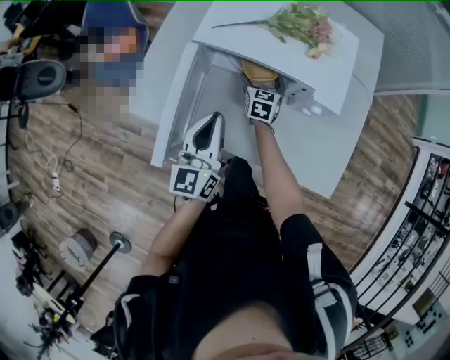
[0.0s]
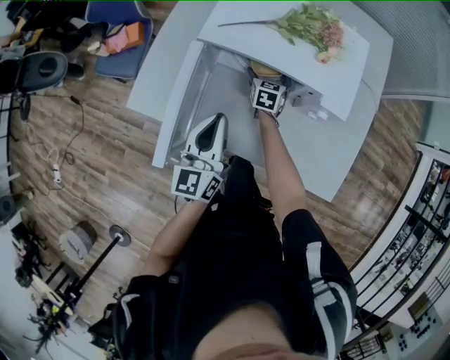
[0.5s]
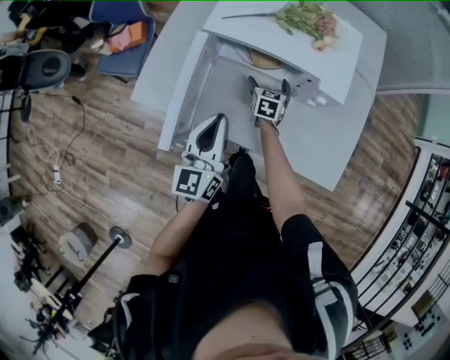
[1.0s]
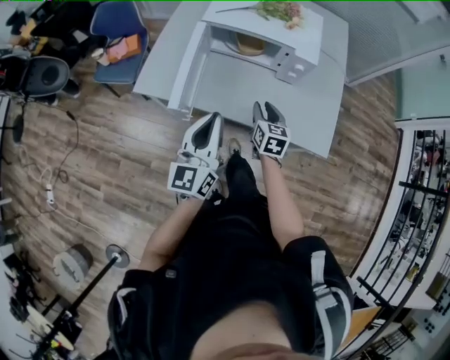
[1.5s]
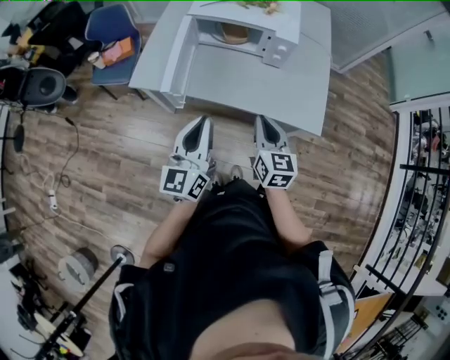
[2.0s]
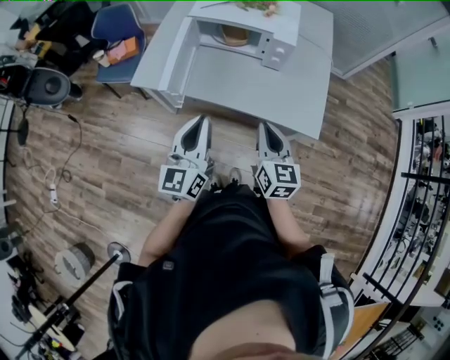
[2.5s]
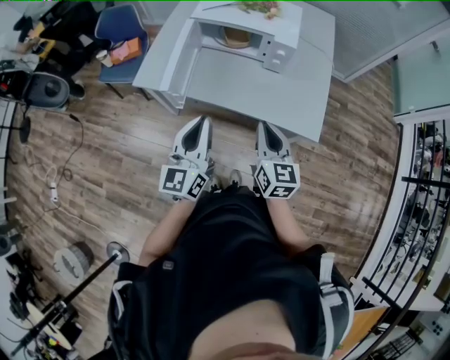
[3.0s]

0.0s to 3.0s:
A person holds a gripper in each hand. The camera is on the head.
0.0s to 1.5s: The grippers both shift backward and upward by some 30 cm. The right gripper closes up.
1.5s to 3.0s: The left gripper heads backward, covering some 10 cm; the right gripper goes roughly 25 cm backward and upward.

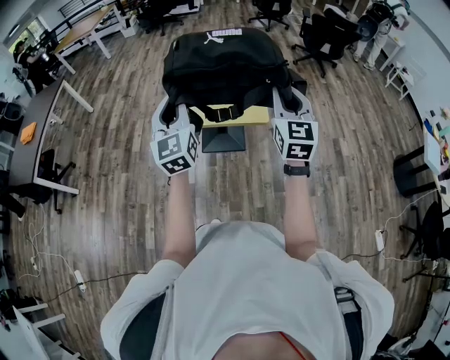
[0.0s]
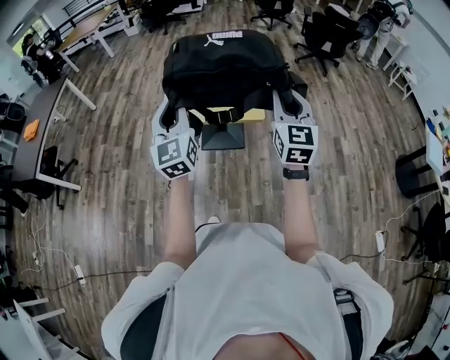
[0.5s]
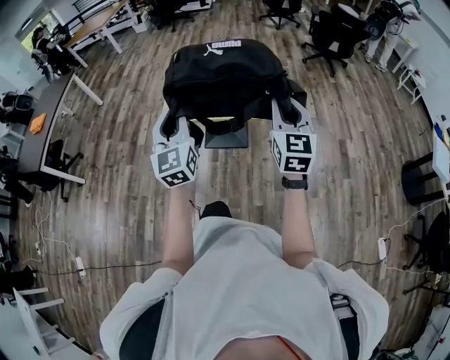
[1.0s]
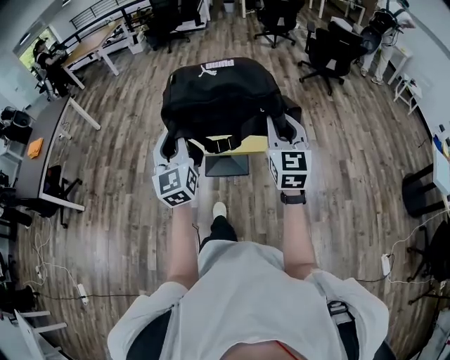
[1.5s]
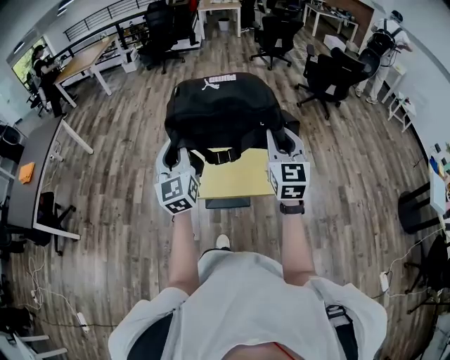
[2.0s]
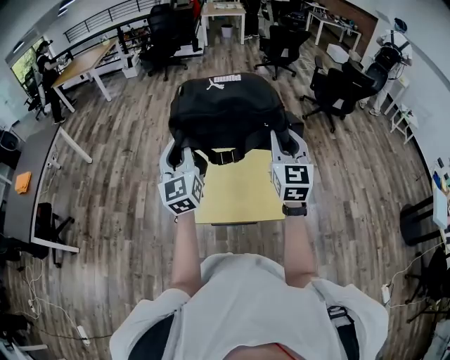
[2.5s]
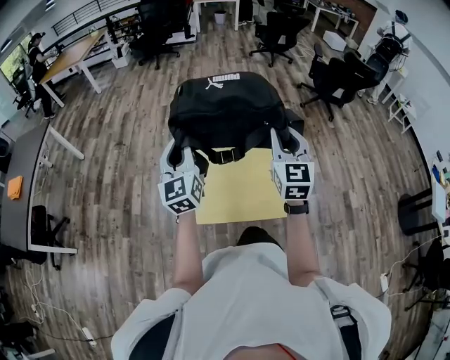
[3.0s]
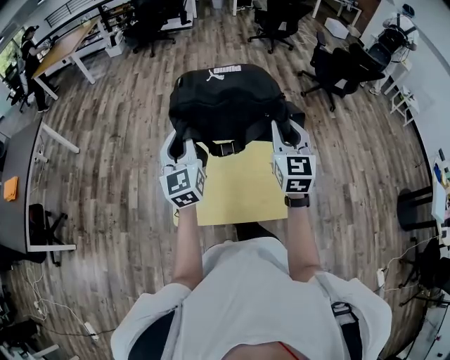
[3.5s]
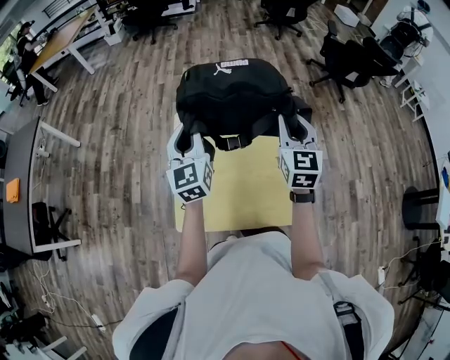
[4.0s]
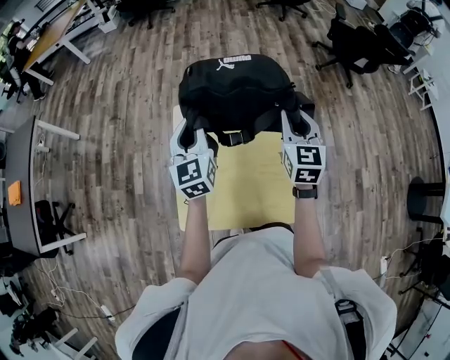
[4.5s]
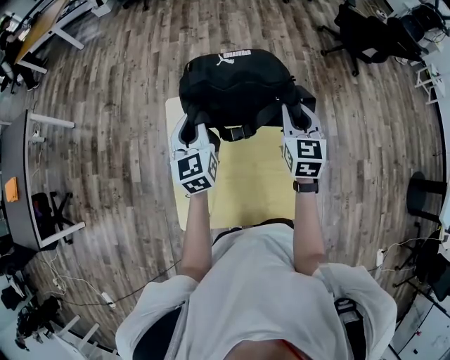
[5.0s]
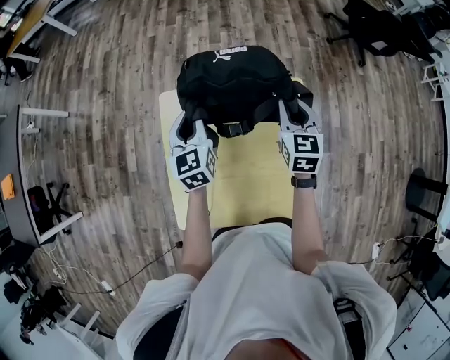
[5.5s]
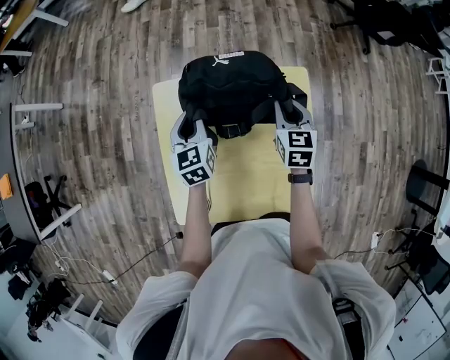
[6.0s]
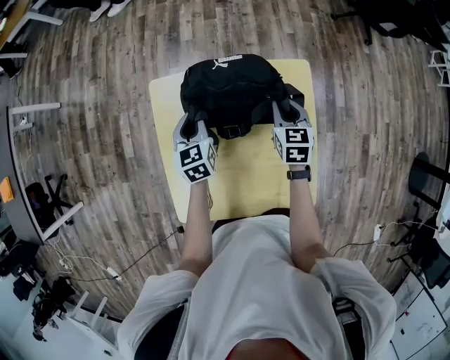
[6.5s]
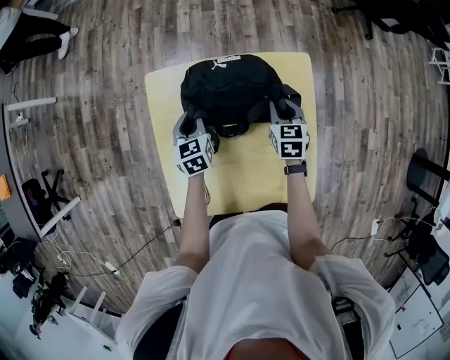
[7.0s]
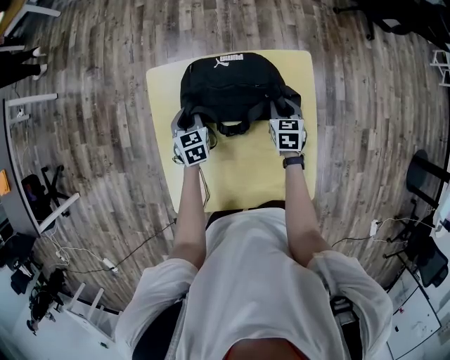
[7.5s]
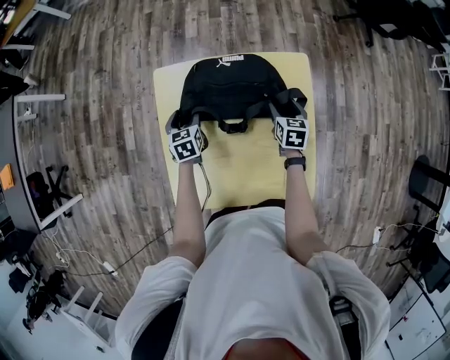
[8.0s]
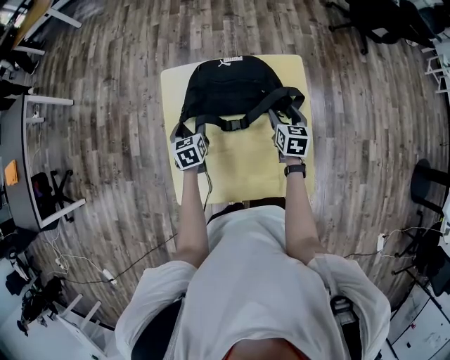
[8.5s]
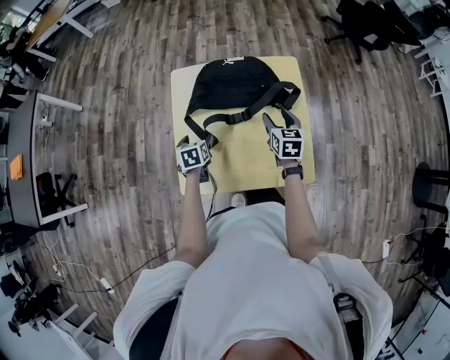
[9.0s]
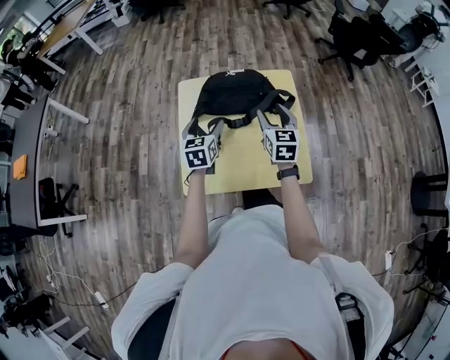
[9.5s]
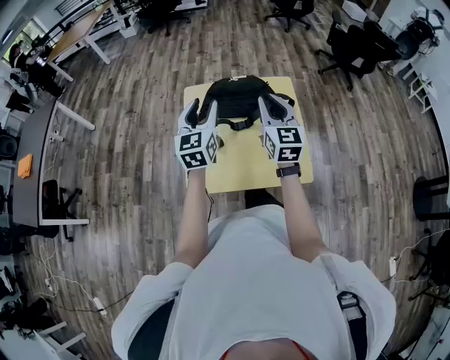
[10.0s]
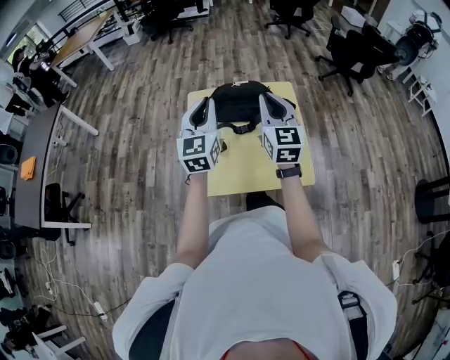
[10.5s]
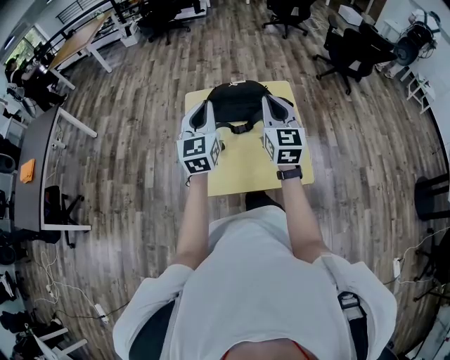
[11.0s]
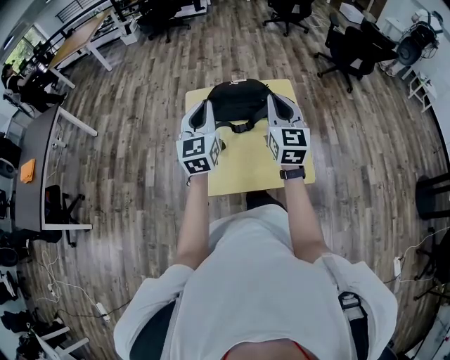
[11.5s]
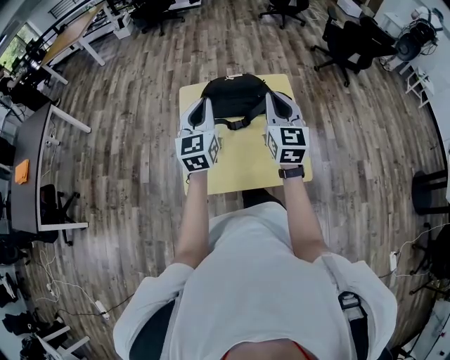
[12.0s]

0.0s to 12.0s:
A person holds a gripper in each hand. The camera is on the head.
0.0s to 2.0s: Both grippers travel together forward, about 20 cm.
2.0s to 4.0s: Both grippers travel together forward, approximately 30 cm.
4.0s to 6.0s: Both grippers travel together downward and forward, approximately 25 cm. The left gripper swivels approximately 30 degrees. The right gripper turns by about 30 degrees.
6.0s to 8.0s: The right gripper goes about 15 cm downward and backward, and opens up; the left gripper travels downward by roughly 15 cm, and opens up.
8.0s to 10.0s: Both grippers travel together upward and backward, some 40 cm. The left gripper points its fingers roughly 40 degrees further upward, while the right gripper angles its fingers upward, by approximately 40 degrees, and closes.
10.0s to 12.0s: The left gripper closes its fingers.

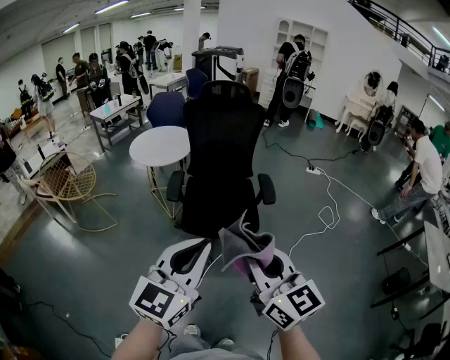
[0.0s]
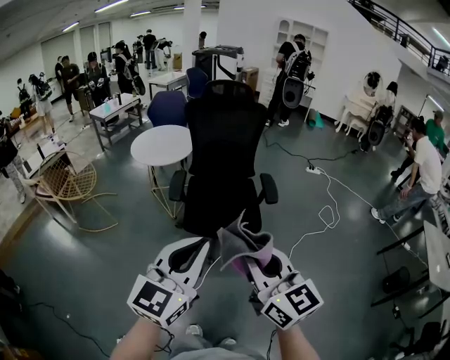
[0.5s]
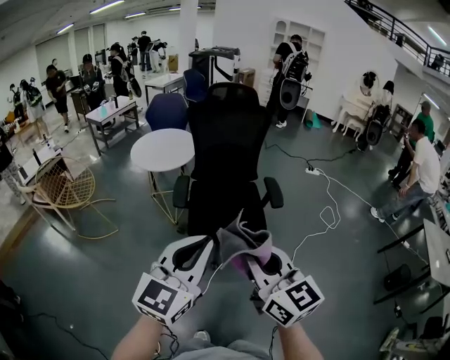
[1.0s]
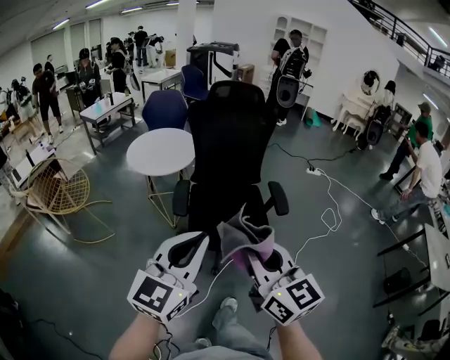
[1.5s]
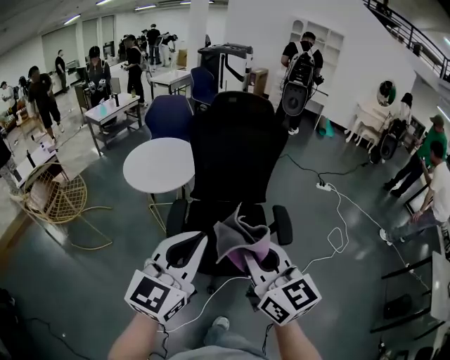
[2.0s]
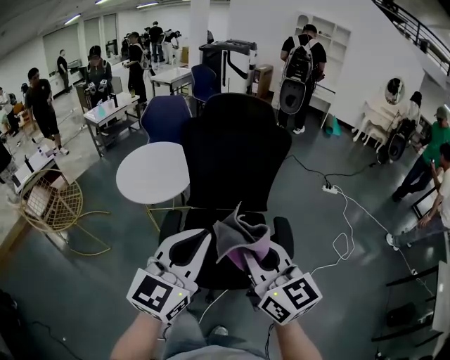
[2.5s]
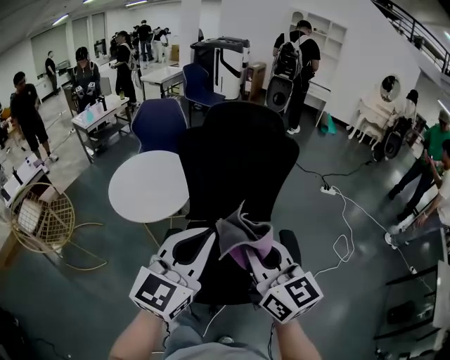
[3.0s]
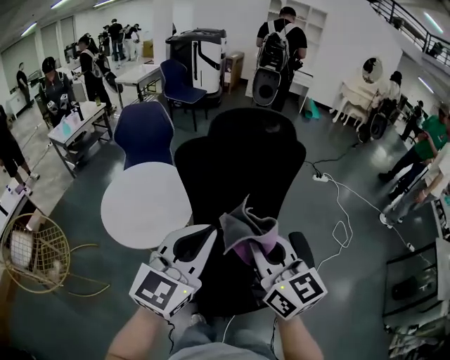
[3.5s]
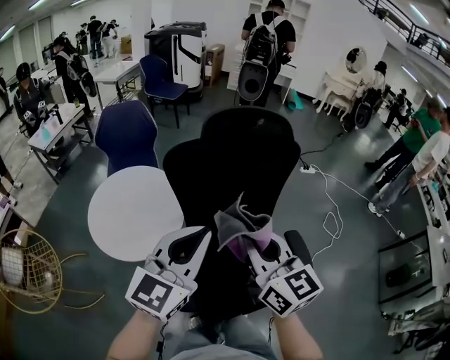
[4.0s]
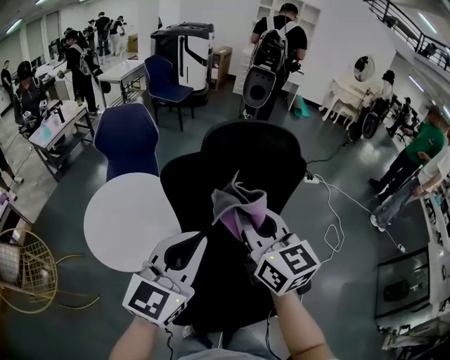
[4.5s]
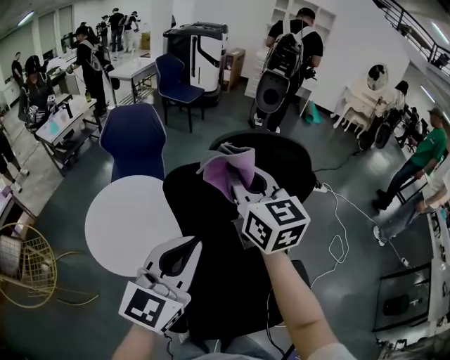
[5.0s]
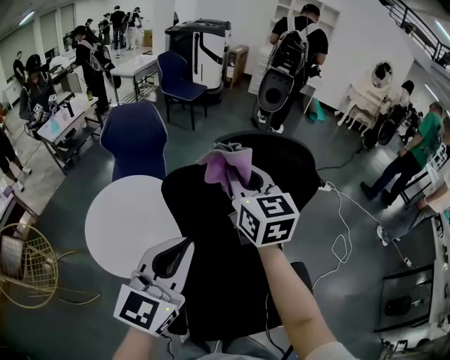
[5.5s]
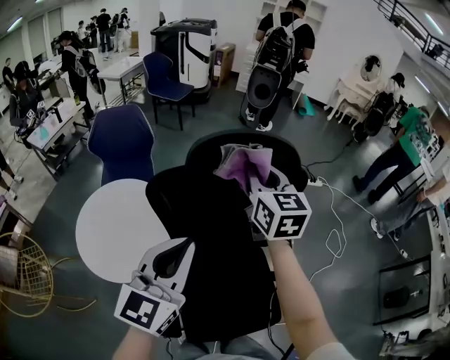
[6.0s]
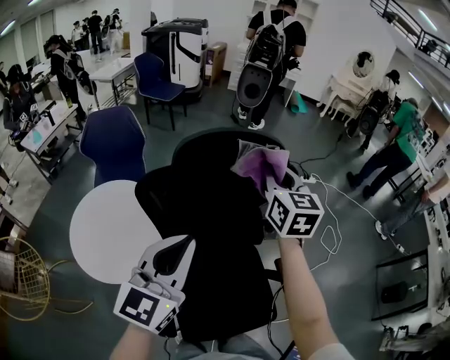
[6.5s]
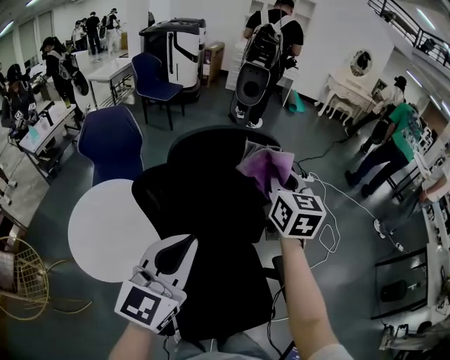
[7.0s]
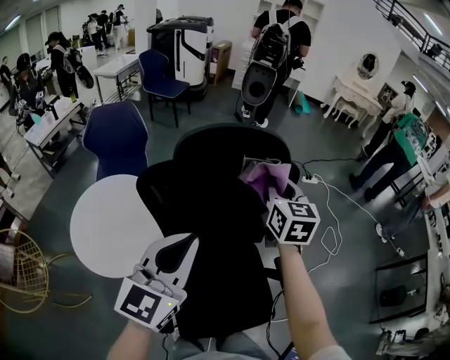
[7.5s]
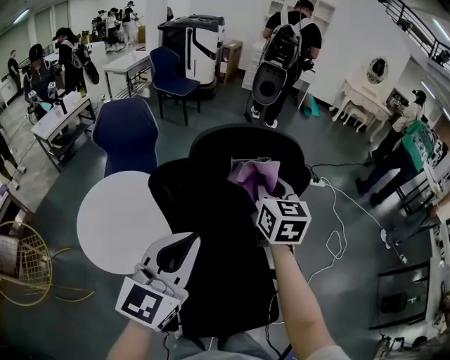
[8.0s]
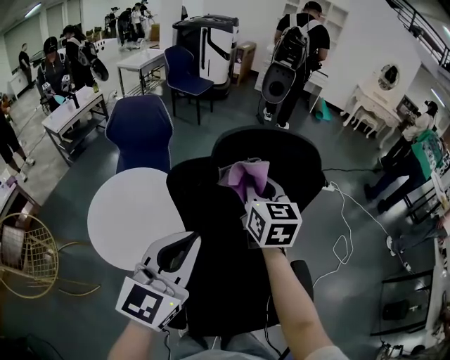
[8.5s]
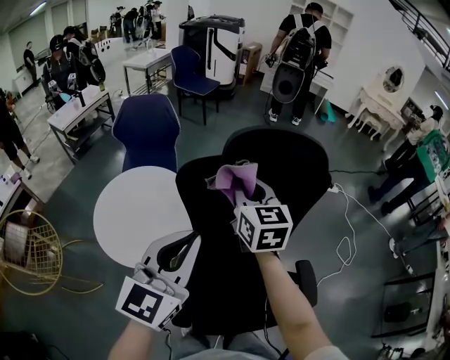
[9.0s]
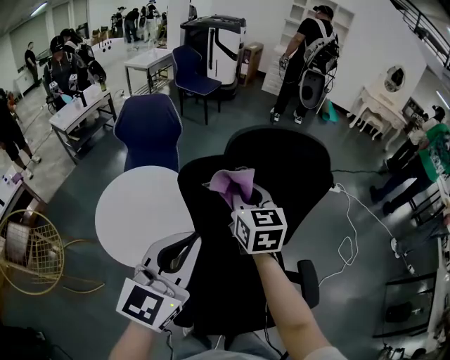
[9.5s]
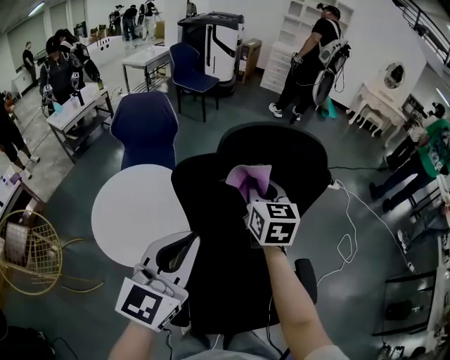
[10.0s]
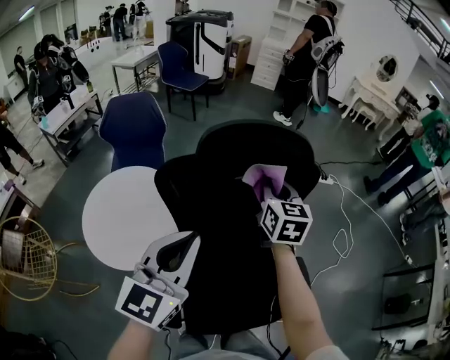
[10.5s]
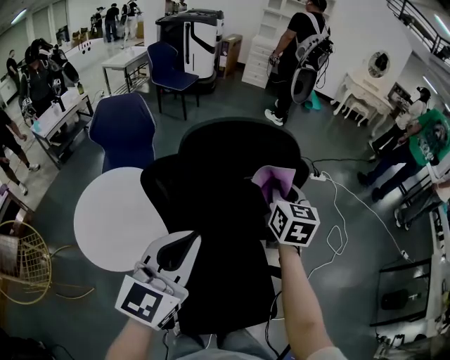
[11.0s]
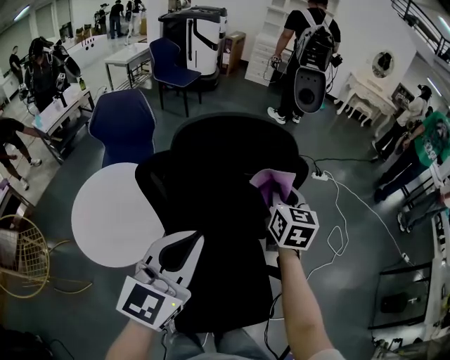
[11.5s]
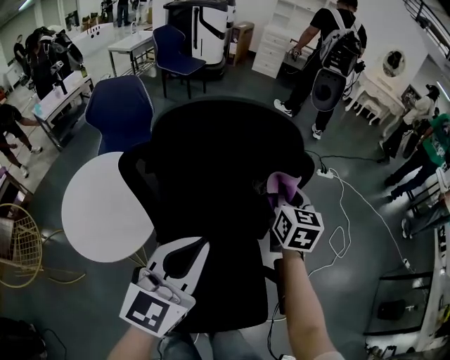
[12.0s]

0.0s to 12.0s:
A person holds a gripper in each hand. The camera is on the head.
0.0s to 2.0s: Both grippers move forward, about 25 cm.
2.0s to 4.0s: The two grippers go some 30 cm forward.
4.0s to 6.0s: The right gripper goes about 30 cm forward. Meanwhile the left gripper is displaced forward by some 10 cm.
6.0s to 8.0s: The right gripper reaches approximately 10 cm to the right, then returns.
8.0s to 10.0s: The right gripper travels to the left by roughly 10 cm.
10.0s to 12.0s: The right gripper goes approximately 20 cm to the right; the left gripper is displaced to the right by about 15 cm.
